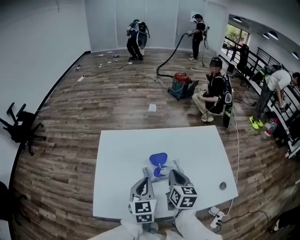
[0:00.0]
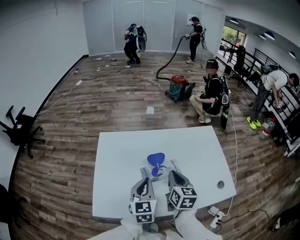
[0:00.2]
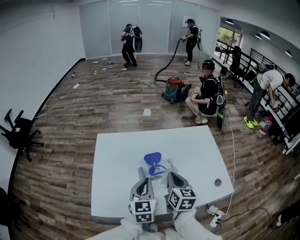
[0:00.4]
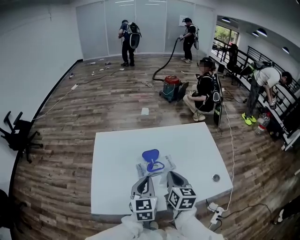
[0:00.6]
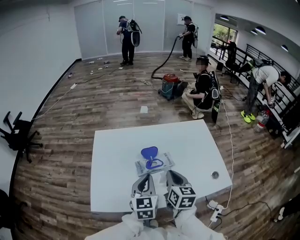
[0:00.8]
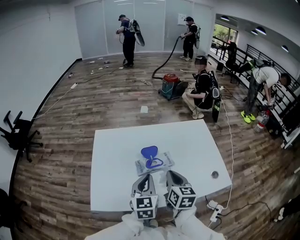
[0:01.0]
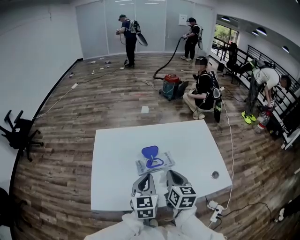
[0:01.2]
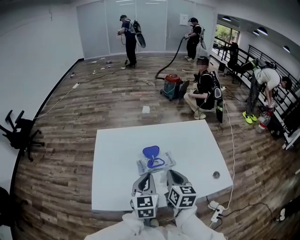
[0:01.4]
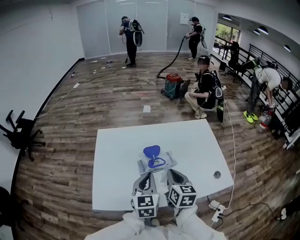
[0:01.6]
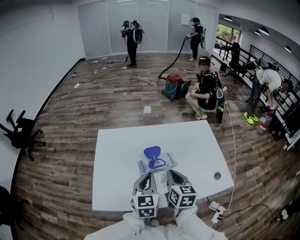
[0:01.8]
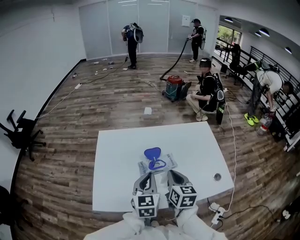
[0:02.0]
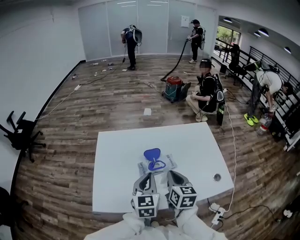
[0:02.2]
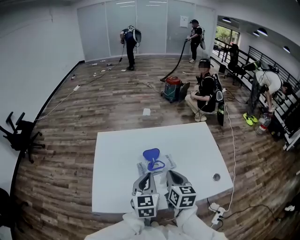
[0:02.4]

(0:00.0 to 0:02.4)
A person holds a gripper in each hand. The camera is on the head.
0:00.0 - 0:01.2: The right gripper goes some 5 cm backward. The left gripper changes place by some 5 cm.
0:01.2 - 0:02.4: The grippers make only small movements.

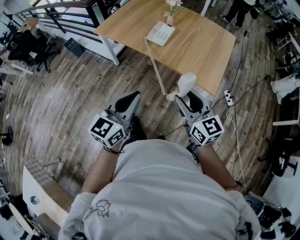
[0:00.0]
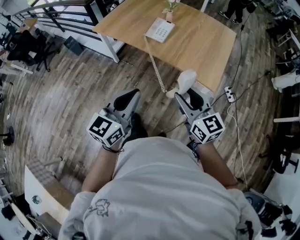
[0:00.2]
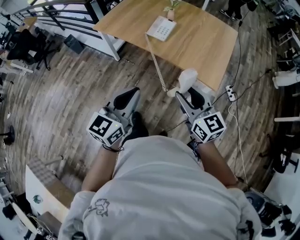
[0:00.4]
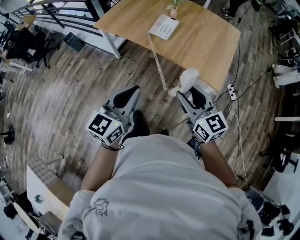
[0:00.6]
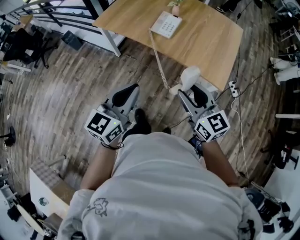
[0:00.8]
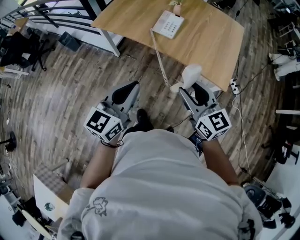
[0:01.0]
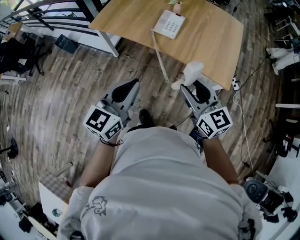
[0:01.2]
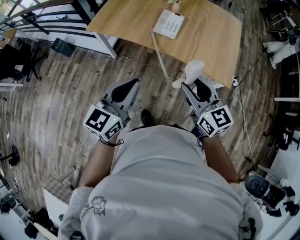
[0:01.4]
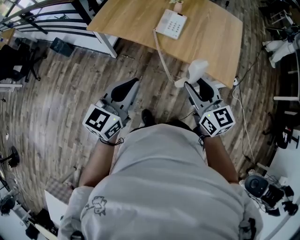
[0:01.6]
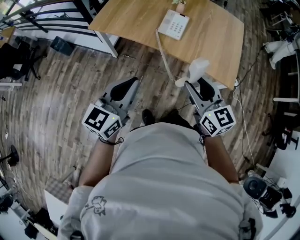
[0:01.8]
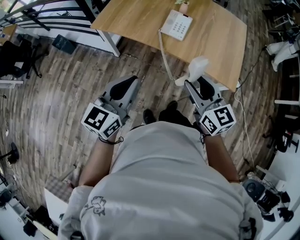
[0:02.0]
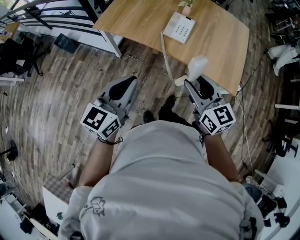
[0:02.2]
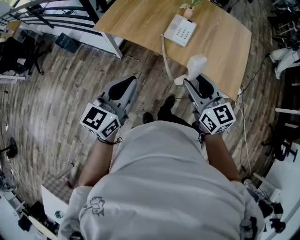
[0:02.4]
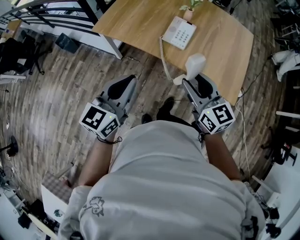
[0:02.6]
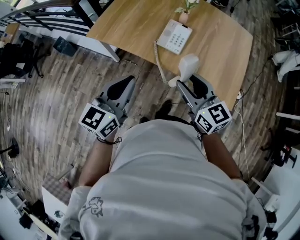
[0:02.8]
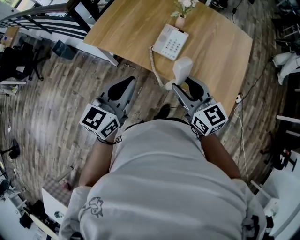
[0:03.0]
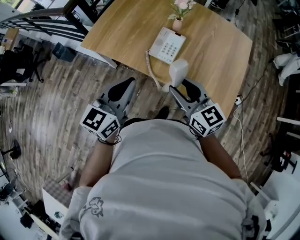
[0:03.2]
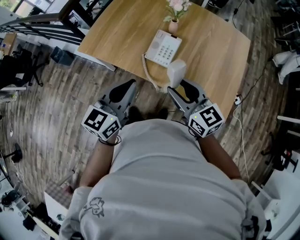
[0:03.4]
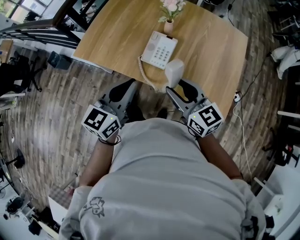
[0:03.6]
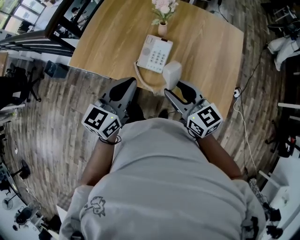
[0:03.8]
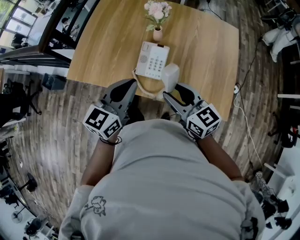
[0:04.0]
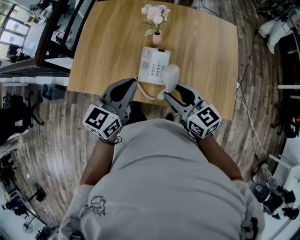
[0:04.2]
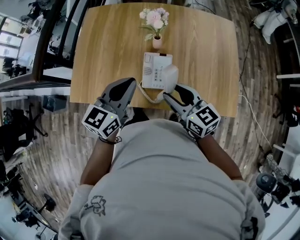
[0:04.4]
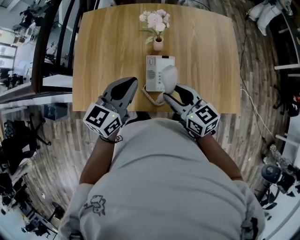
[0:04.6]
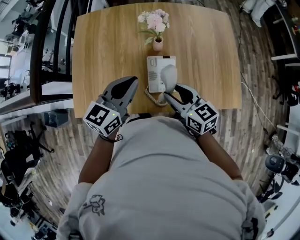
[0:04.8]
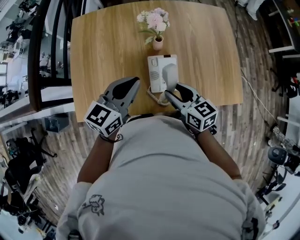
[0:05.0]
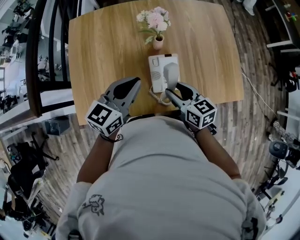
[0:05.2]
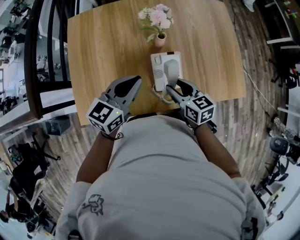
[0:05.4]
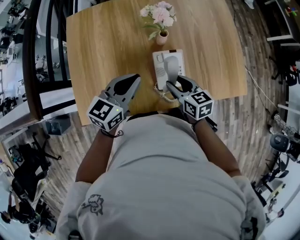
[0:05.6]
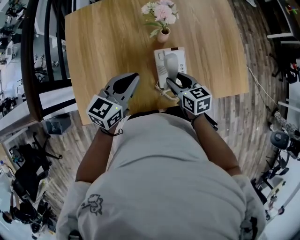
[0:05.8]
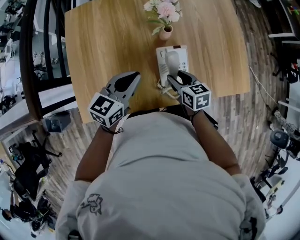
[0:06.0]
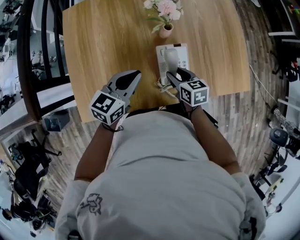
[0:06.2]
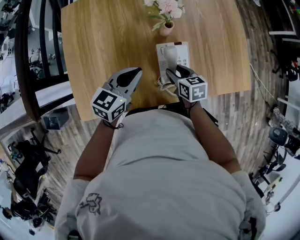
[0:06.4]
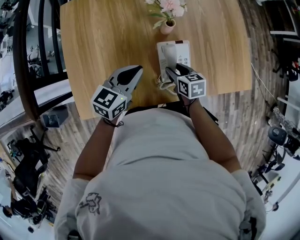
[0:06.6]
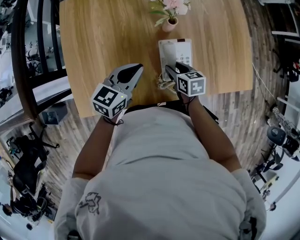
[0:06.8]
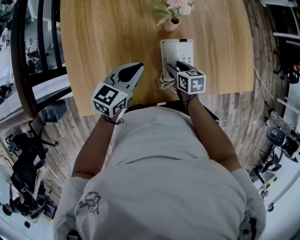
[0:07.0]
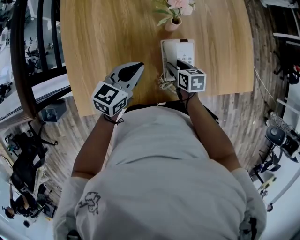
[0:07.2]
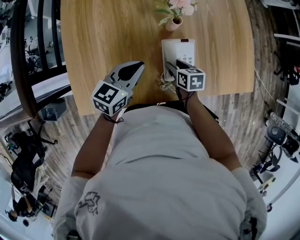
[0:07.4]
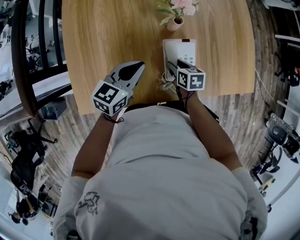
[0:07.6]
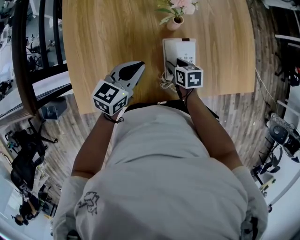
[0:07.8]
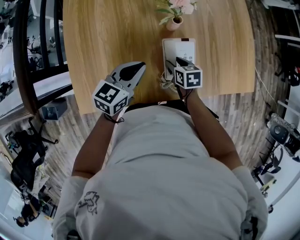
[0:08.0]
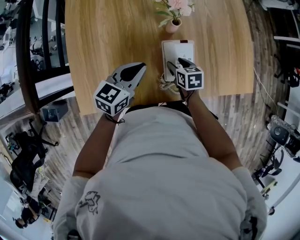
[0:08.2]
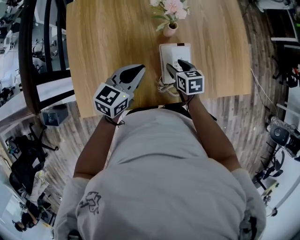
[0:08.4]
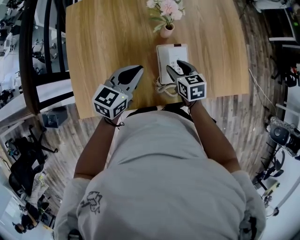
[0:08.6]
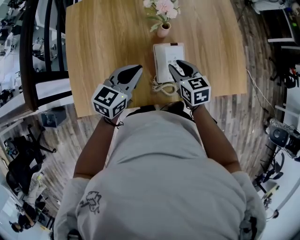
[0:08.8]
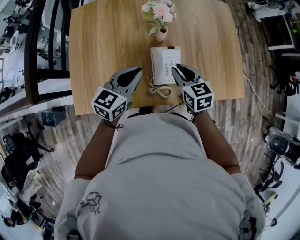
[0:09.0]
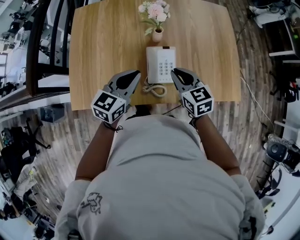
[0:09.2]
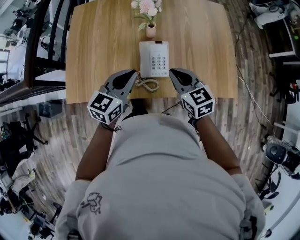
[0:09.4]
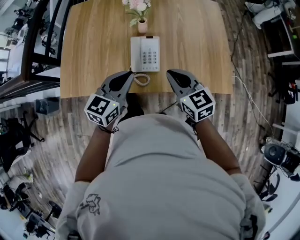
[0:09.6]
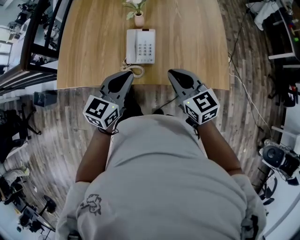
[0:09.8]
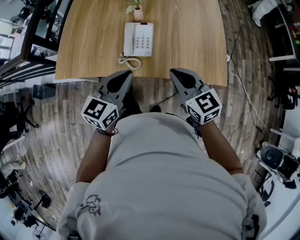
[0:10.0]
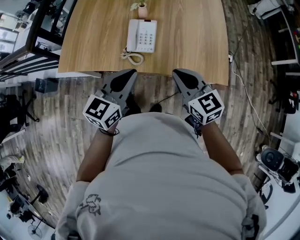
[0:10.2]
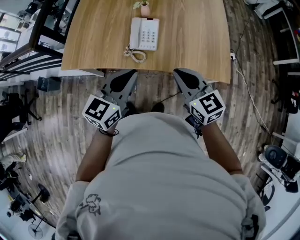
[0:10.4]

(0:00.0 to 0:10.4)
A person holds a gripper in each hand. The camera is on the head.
0:00.0 - 0:01.4: The grippers both shift to the left and forward by about 20 cm.
0:01.4 - 0:03.0: Both grippers move forward, roughly 20 cm.
0:03.0 - 0:04.4: The grippers both shift forward by about 20 cm. The left gripper swivels some 20 degrees.
0:04.4 - 0:06.0: The left gripper moves to the left, downward and forward, some 15 cm, and swivels about 20 degrees; the right gripper moves downward, to the left and forward, roughly 20 cm, and turns by some 40 degrees.
0:06.0 - 0:07.4: The left gripper travels downward by approximately 5 cm, while the right gripper shifts about 10 cm downward.
0:07.4 - 0:09.0: The right gripper travels upward by roughly 15 cm, swivels approximately 30 degrees, and closes its fingers, while the left gripper heads upward, covering about 5 cm.
0:09.0 - 0:10.4: The left gripper shifts about 30 cm backward and to the right, while the right gripper is displaced backward, to the right and upward by roughly 30 cm, and rotates roughly 30 degrees.

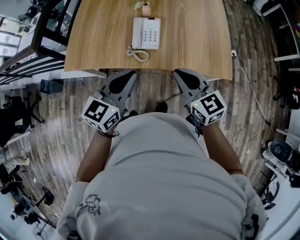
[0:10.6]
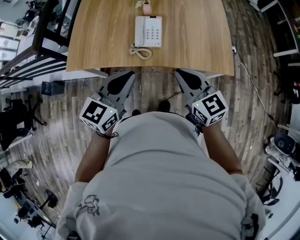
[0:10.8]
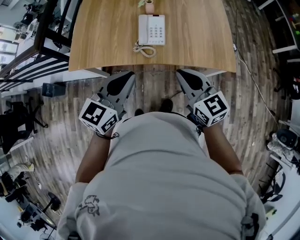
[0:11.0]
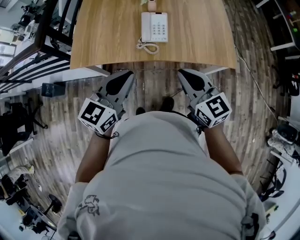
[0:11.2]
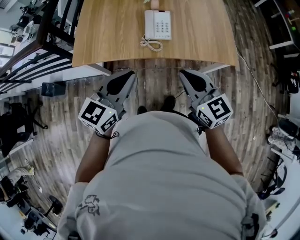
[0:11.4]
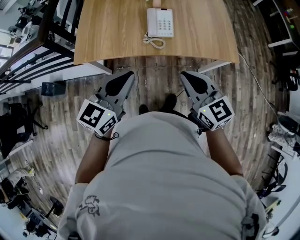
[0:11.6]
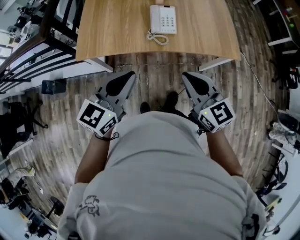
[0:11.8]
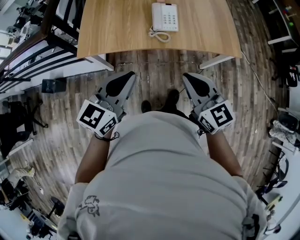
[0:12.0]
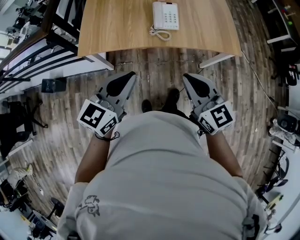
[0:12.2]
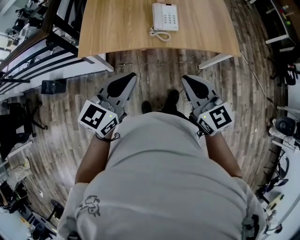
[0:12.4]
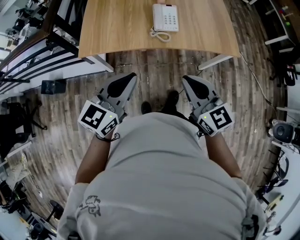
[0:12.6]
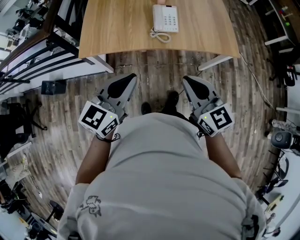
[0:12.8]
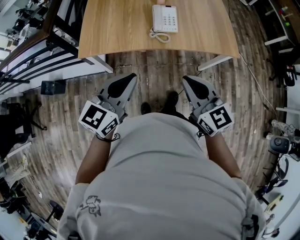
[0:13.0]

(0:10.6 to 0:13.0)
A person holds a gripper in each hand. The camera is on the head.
0:10.6 - 0:11.8: Both grippers move to the left and backward, approximately 20 cm.
0:11.8 - 0:13.0: The right gripper ends up roughly 5 cm from where it was.

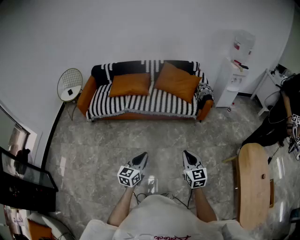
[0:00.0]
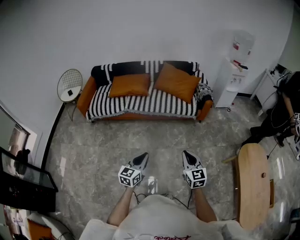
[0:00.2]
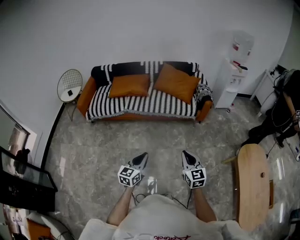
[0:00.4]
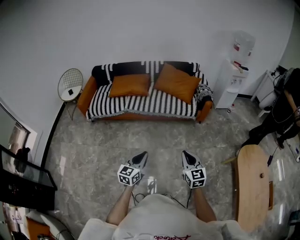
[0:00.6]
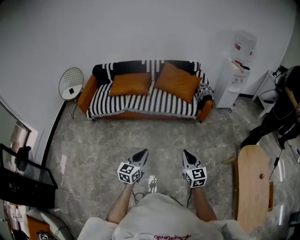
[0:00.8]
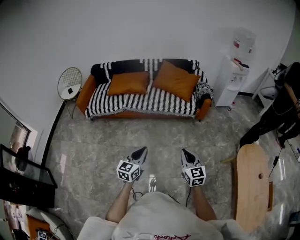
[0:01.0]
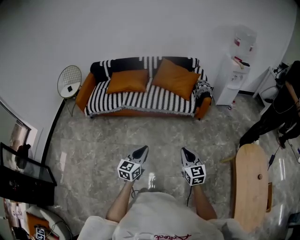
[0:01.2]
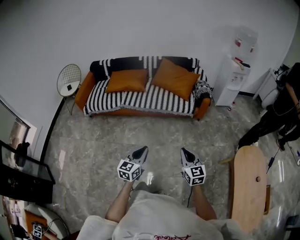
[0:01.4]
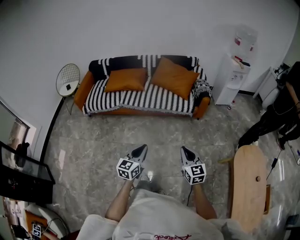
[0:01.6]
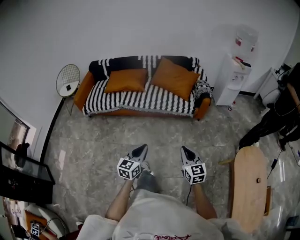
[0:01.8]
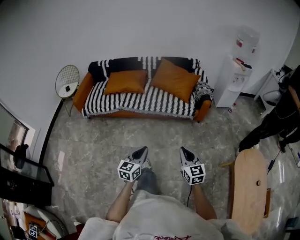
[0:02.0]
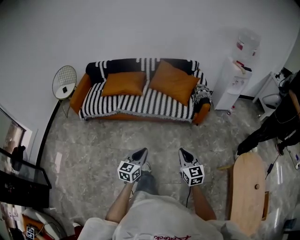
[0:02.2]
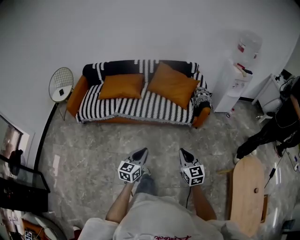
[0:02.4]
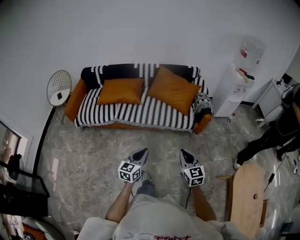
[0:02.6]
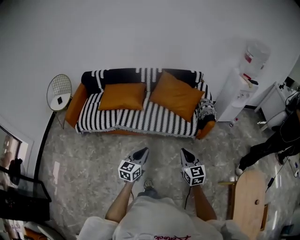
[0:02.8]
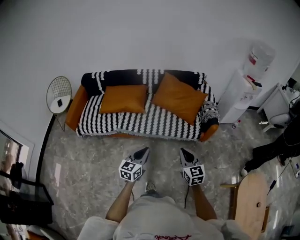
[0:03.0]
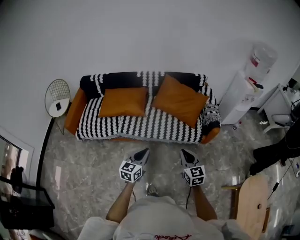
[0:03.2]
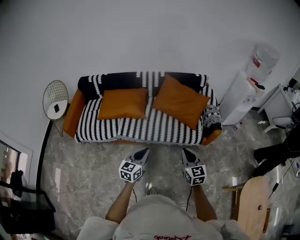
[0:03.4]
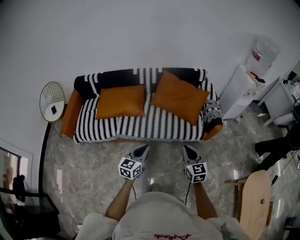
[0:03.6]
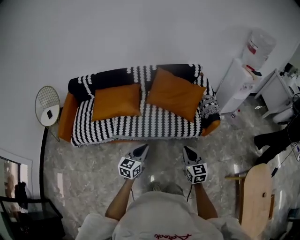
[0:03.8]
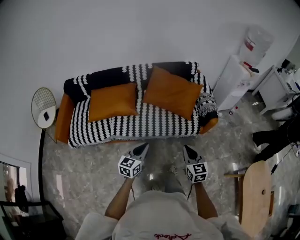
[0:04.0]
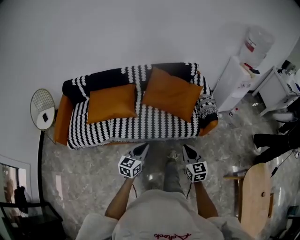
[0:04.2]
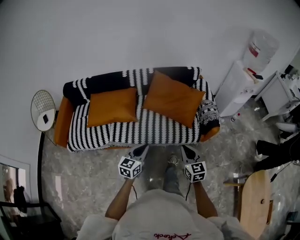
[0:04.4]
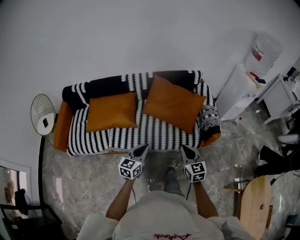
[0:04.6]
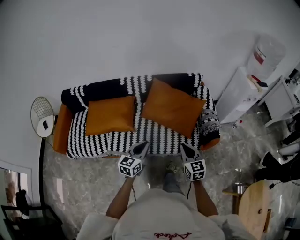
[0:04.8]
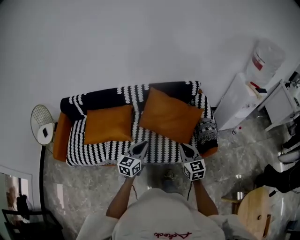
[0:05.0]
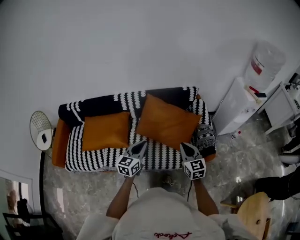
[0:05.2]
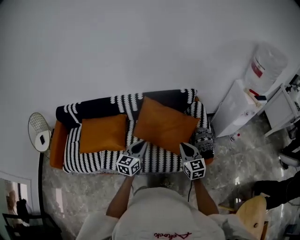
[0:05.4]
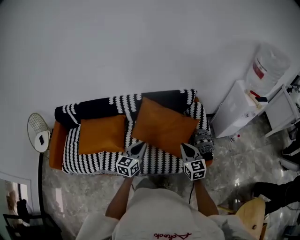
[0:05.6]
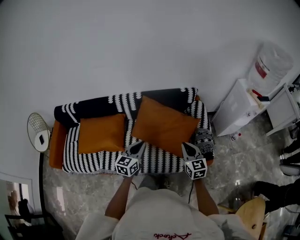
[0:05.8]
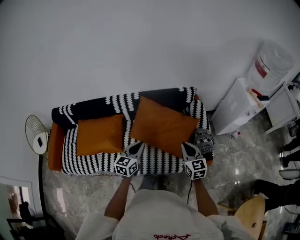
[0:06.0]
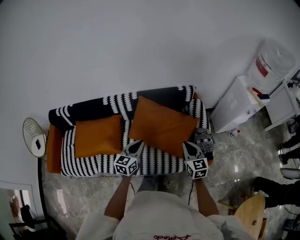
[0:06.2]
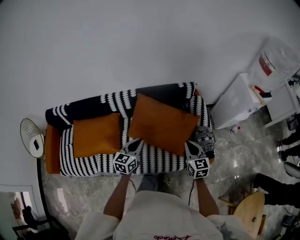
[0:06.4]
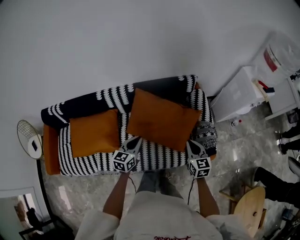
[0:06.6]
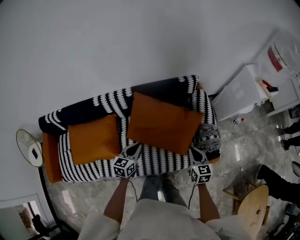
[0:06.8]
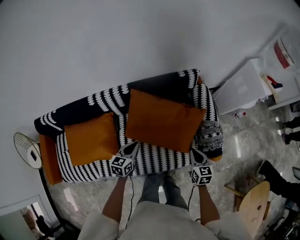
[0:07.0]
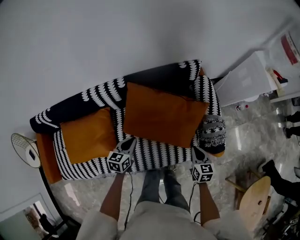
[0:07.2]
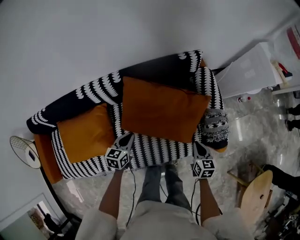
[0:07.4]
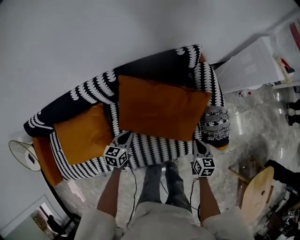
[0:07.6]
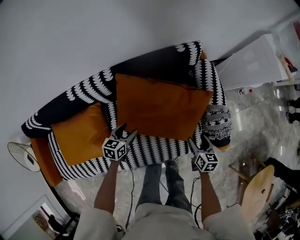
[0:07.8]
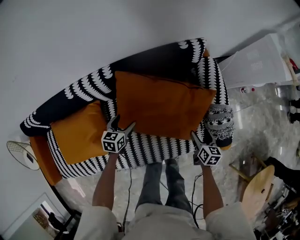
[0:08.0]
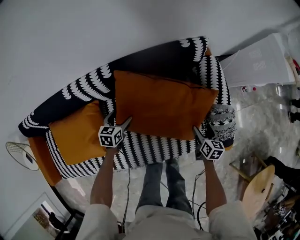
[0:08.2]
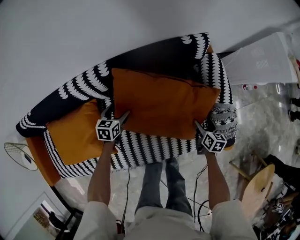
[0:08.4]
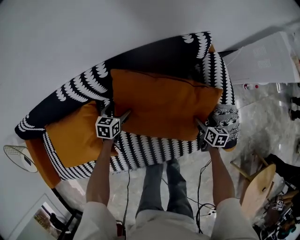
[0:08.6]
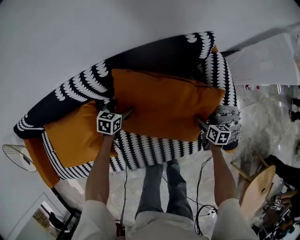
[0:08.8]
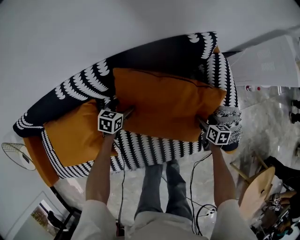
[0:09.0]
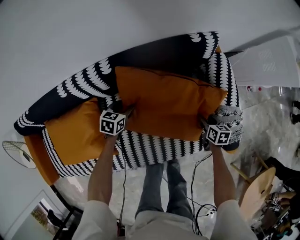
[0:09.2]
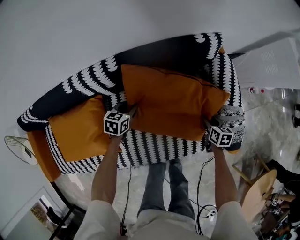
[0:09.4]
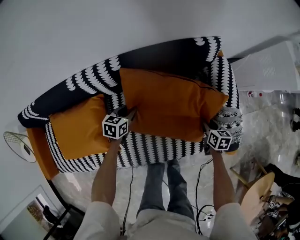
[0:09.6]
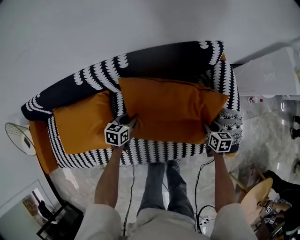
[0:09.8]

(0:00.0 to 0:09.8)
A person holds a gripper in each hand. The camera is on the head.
0:00.0 - 0:01.4: Both grippers move to the right, roughly 10 cm.
0:01.4 - 0:02.8: Both grippers travel together forward, roughly 30 cm.
0:02.8 - 0:04.2: Both grippers travel together forward, some 20 cm.
0:04.2 - 0:05.6: Both grippers move forward, about 35 cm.
0:05.6 - 0:07.0: The left gripper goes about 25 cm downward, forward and to the left, and rotates about 20 degrees; the right gripper travels downward and forward by about 20 cm, and changes its angle by some 30 degrees.
0:07.0 - 0:08.4: The right gripper heads downward and forward, covering roughly 25 cm, changes its angle by some 30 degrees, and opens its fingers. The left gripper goes roughly 25 cm downward, forward and to the left, and opens.
0:08.4 - 0:09.8: The right gripper closes up; the left gripper is displaced backward by approximately 5 cm, and closes its fingers.
